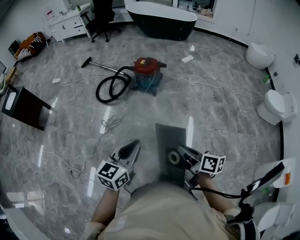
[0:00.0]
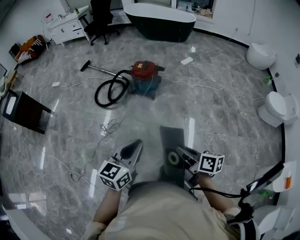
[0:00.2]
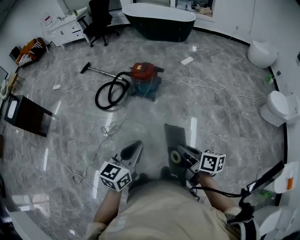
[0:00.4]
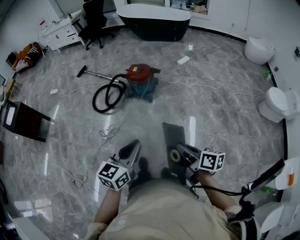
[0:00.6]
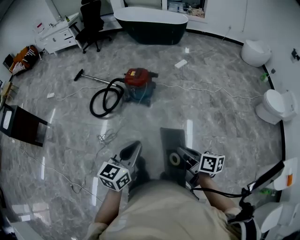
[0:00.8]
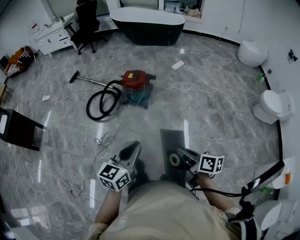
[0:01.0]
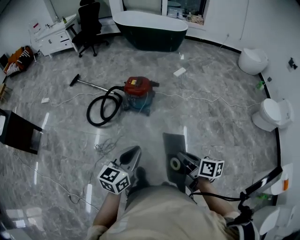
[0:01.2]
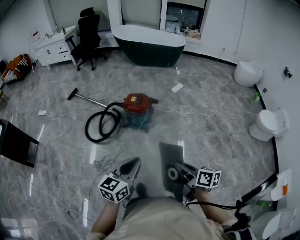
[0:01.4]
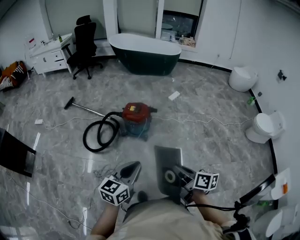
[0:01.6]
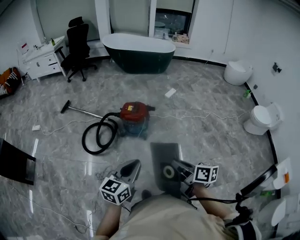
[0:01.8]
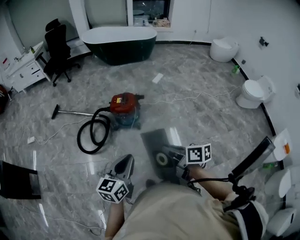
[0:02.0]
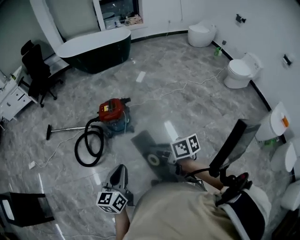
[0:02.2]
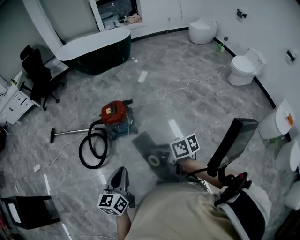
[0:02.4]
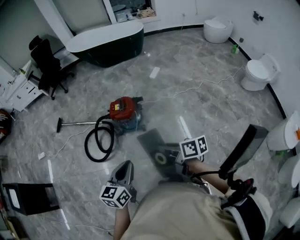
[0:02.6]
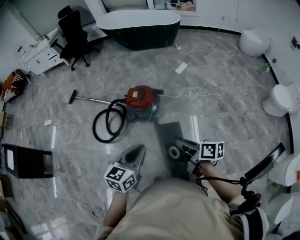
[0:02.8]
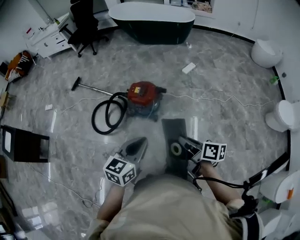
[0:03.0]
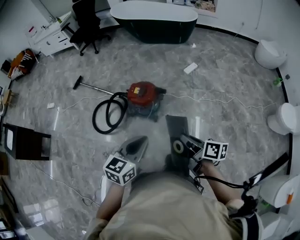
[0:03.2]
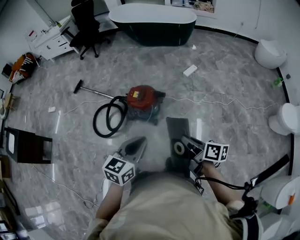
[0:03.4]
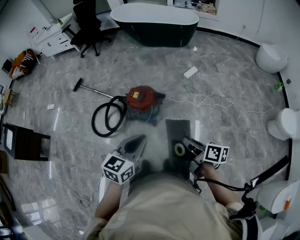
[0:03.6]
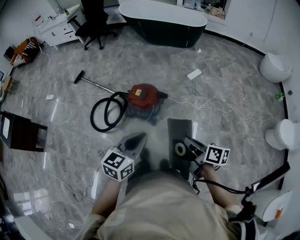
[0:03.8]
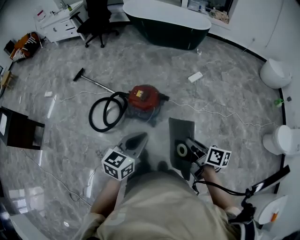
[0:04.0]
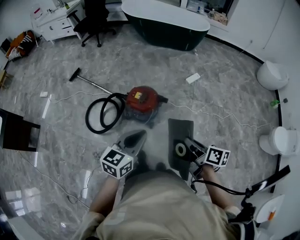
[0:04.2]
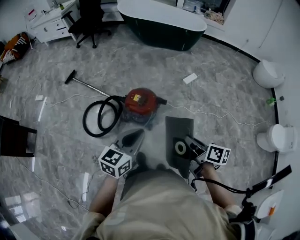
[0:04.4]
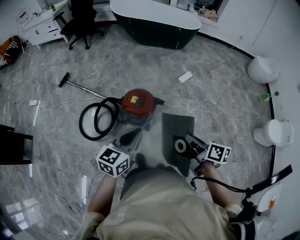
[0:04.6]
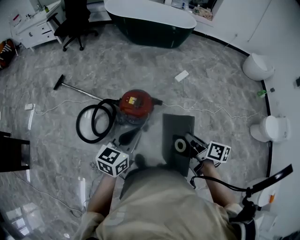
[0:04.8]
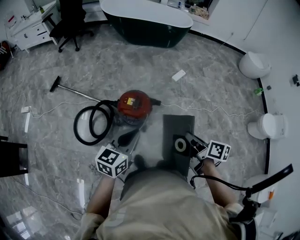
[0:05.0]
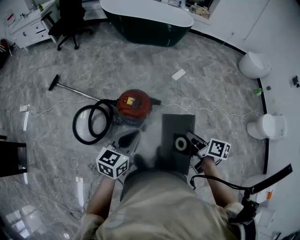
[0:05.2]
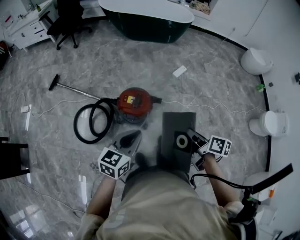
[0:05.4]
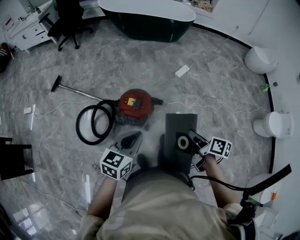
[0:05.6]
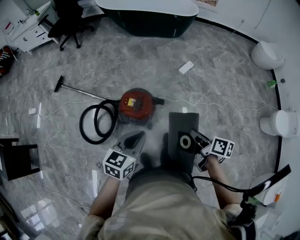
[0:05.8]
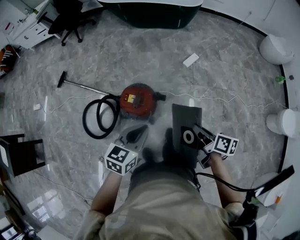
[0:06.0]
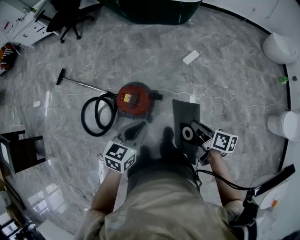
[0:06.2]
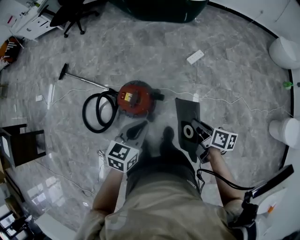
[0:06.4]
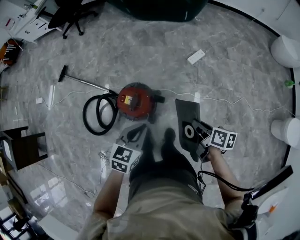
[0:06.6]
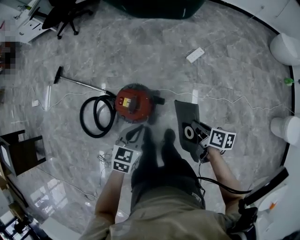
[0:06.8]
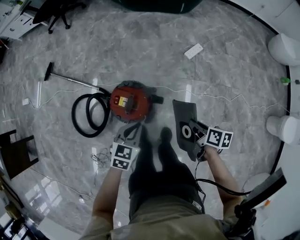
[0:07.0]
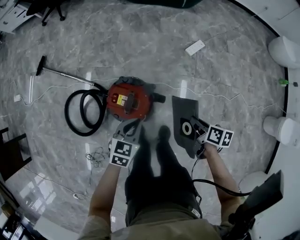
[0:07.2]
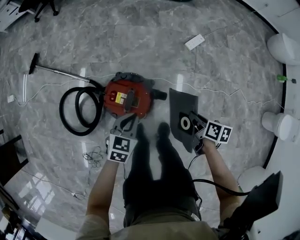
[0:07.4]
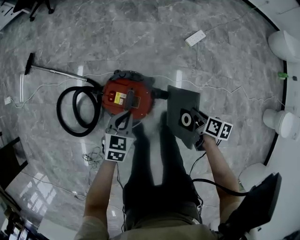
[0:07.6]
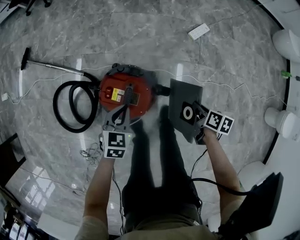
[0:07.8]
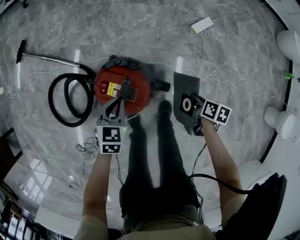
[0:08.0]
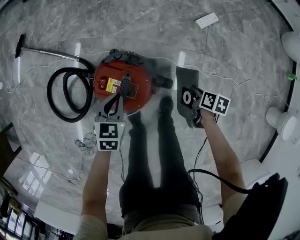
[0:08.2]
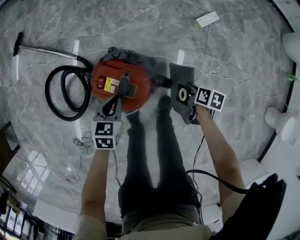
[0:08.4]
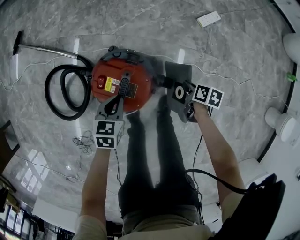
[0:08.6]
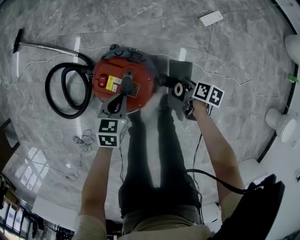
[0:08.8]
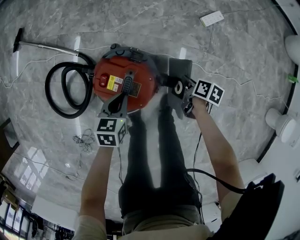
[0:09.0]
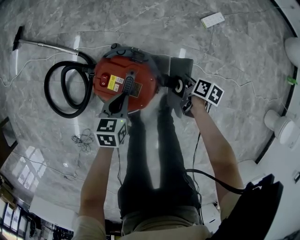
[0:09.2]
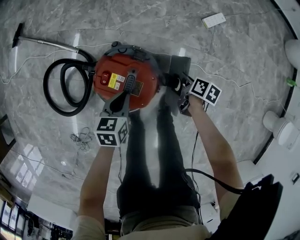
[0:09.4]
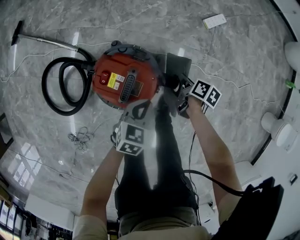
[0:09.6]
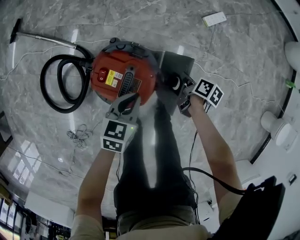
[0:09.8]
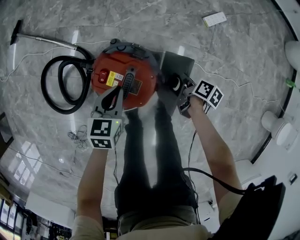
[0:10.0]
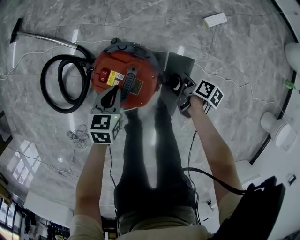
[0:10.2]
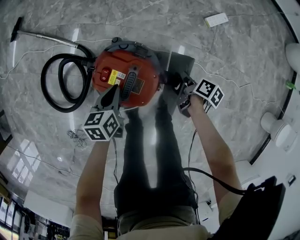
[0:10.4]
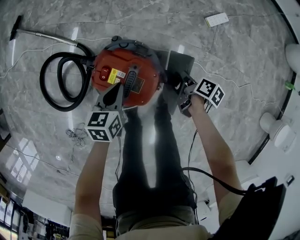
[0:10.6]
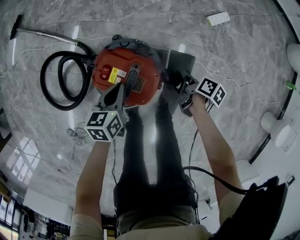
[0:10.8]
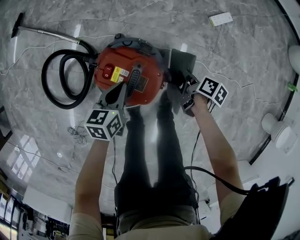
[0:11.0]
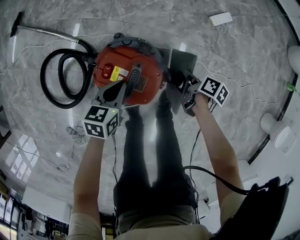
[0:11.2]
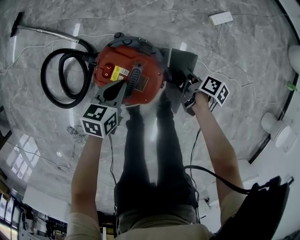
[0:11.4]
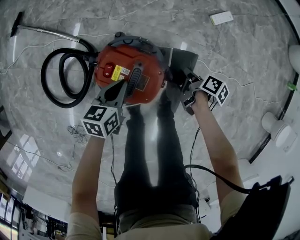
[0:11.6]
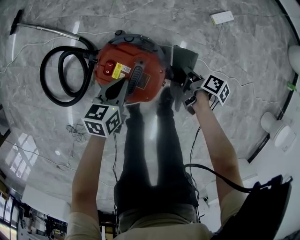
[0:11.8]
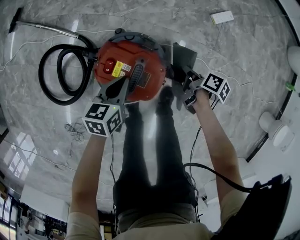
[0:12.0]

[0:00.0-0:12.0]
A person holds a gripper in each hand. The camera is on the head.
0.0 to 1.6 s: The left gripper changes place by about 30 cm.
1.6 to 3.0 s: The left gripper ends up approximately 20 cm from where it was.
3.0 to 4.4 s: The left gripper shifts by some 15 cm.
4.4 to 6.0 s: The left gripper moves some 20 cm.
6.0 to 7.6 s: The left gripper heads downward, covering about 30 cm.
7.6 to 9.0 s: The left gripper heads downward, covering approximately 10 cm, and rotates approximately 20 degrees.

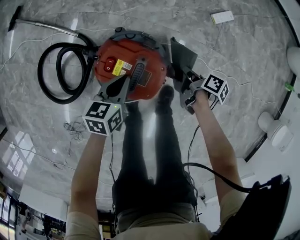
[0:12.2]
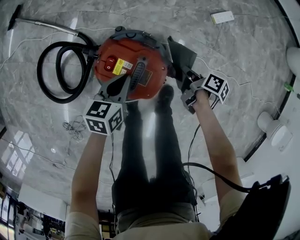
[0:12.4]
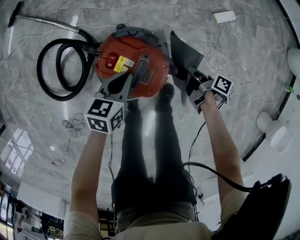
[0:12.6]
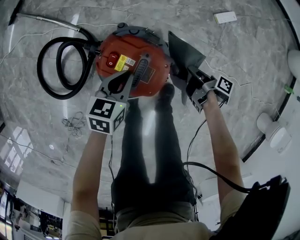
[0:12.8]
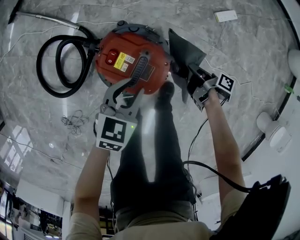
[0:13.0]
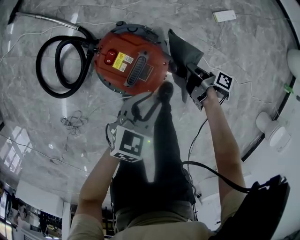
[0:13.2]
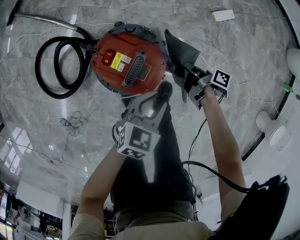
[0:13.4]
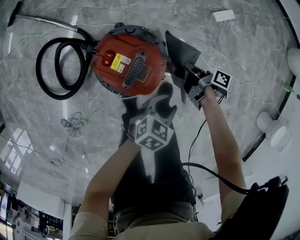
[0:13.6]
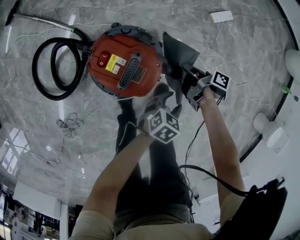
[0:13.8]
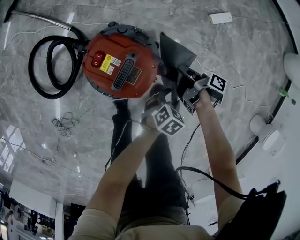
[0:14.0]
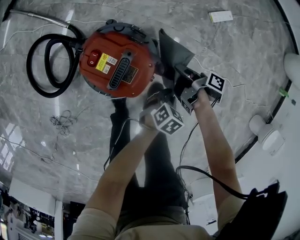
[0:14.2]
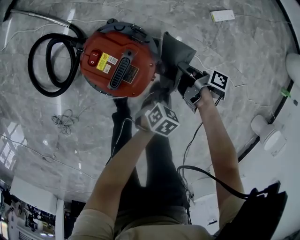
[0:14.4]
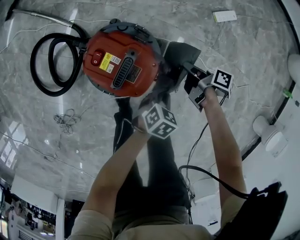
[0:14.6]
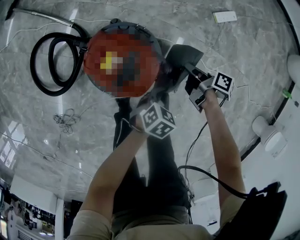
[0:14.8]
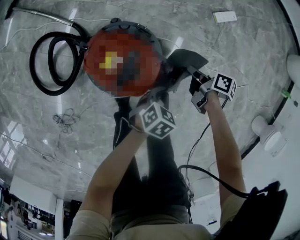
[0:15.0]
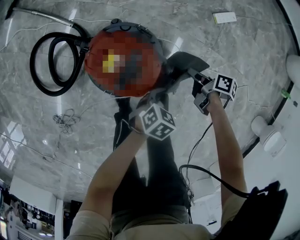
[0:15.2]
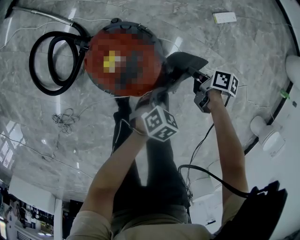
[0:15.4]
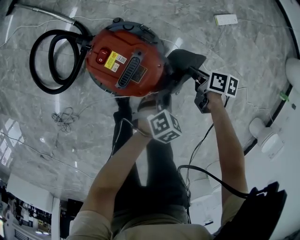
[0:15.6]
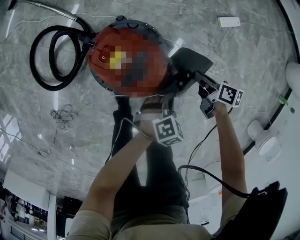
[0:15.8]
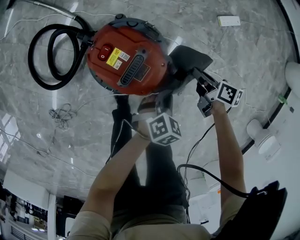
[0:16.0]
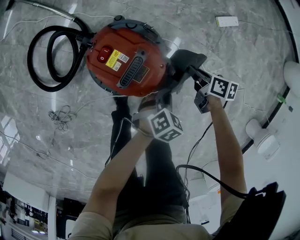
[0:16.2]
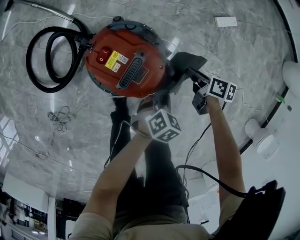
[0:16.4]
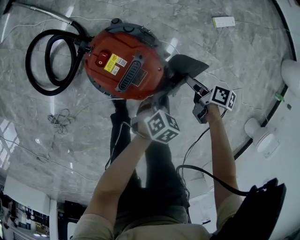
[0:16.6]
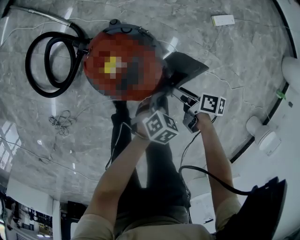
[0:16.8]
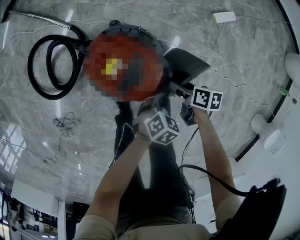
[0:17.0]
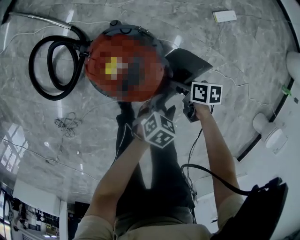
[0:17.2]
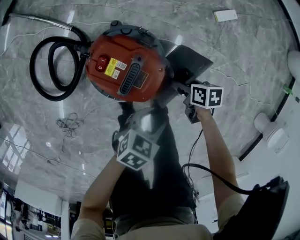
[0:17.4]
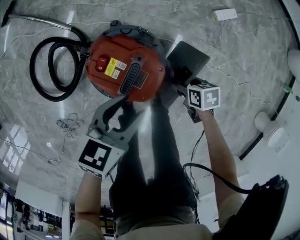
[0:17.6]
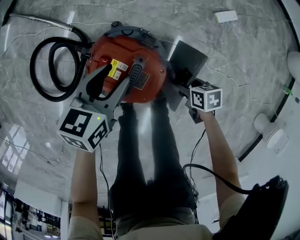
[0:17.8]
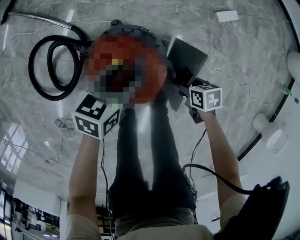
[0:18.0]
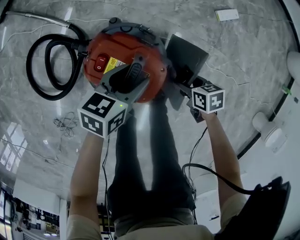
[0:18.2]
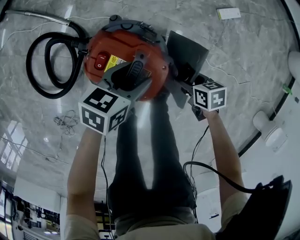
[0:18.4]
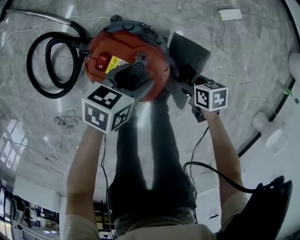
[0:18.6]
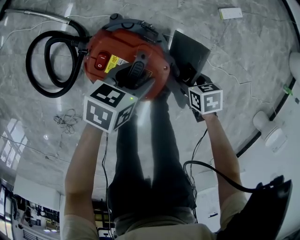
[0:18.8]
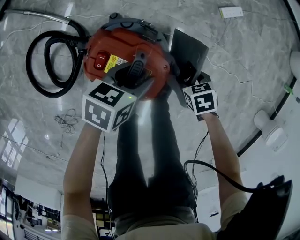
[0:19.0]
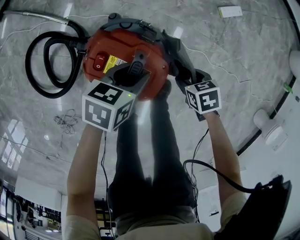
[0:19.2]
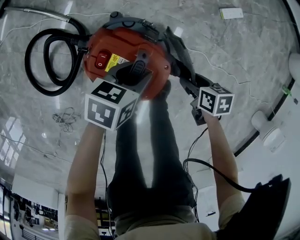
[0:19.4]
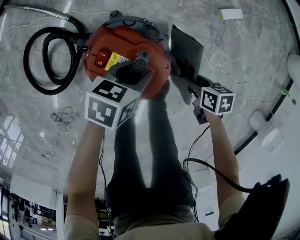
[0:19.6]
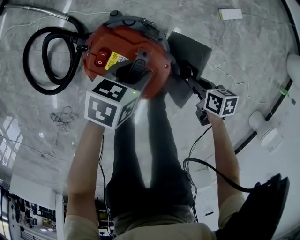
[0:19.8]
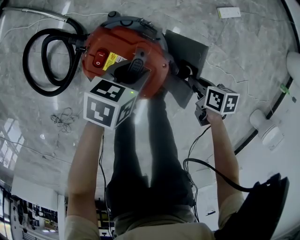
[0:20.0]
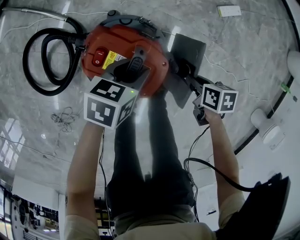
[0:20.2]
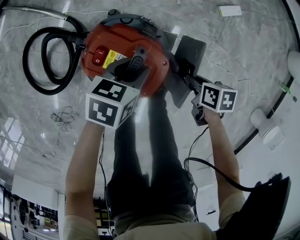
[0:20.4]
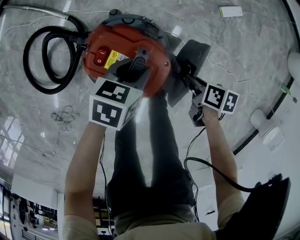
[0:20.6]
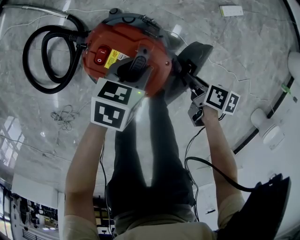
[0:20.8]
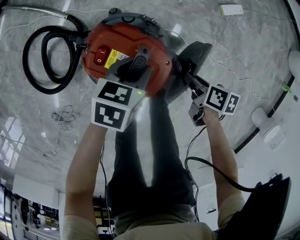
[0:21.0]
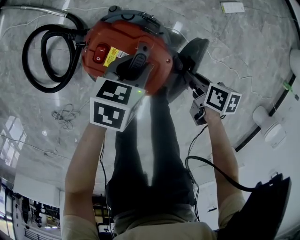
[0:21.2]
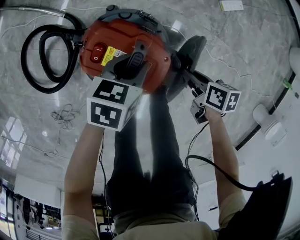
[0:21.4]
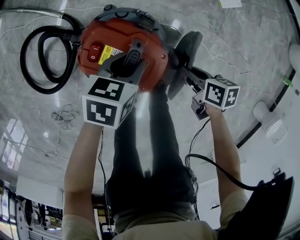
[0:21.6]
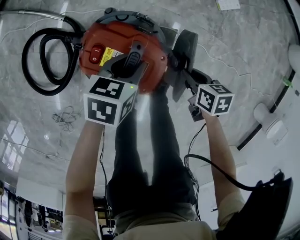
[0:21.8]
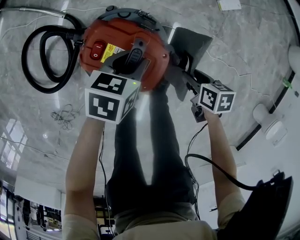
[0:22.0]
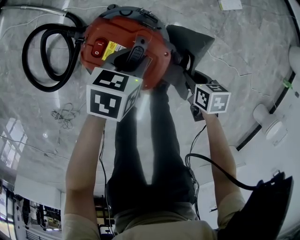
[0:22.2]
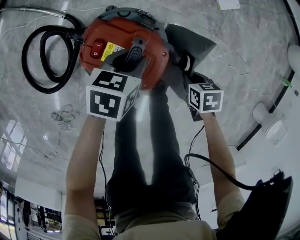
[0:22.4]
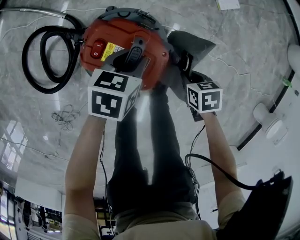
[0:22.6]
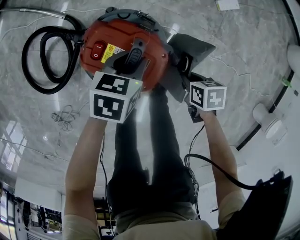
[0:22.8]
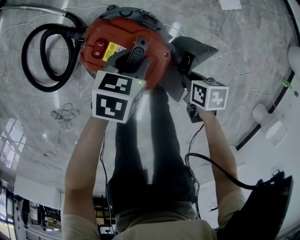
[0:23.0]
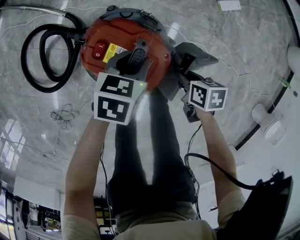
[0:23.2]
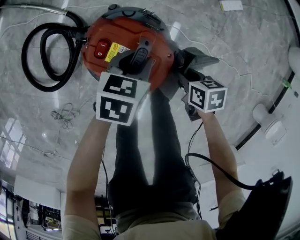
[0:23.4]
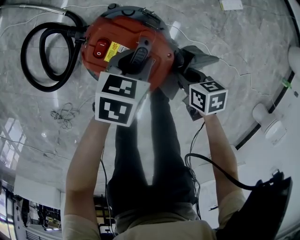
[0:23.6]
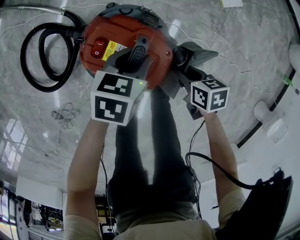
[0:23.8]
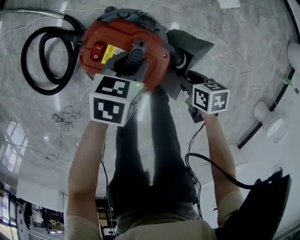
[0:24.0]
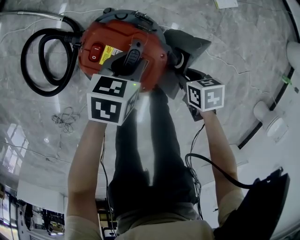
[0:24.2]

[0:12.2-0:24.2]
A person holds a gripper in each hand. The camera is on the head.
12.2 to 13.8 s: The left gripper ends up approximately 25 cm from where it was, changes its angle by approximately 30 degrees, and opens.
13.8 to 15.2 s: The left gripper moves approximately 5 cm, and closes up.
16.6 to 18.2 s: The left gripper ends up roughly 15 cm from where it was, swivels roughly 30 degrees, and opens its fingers.

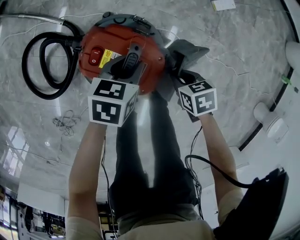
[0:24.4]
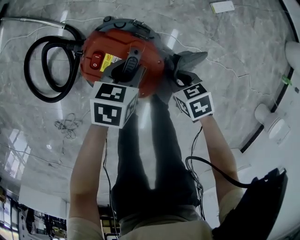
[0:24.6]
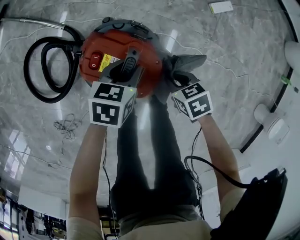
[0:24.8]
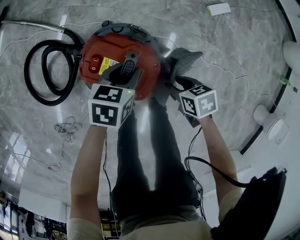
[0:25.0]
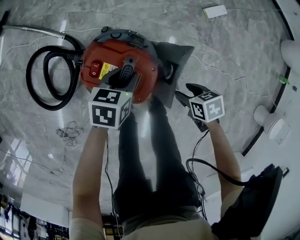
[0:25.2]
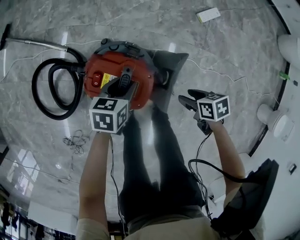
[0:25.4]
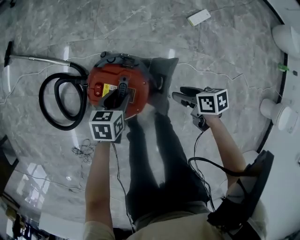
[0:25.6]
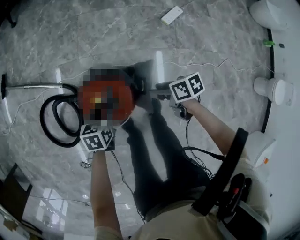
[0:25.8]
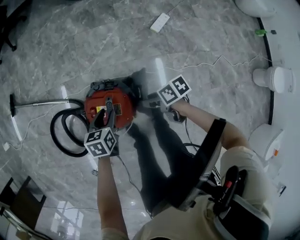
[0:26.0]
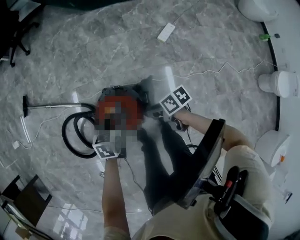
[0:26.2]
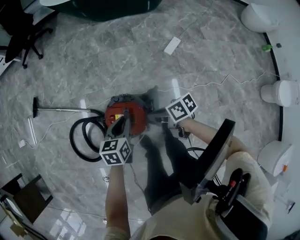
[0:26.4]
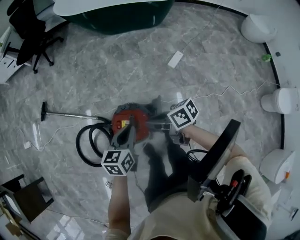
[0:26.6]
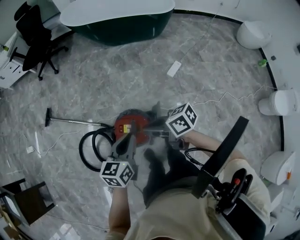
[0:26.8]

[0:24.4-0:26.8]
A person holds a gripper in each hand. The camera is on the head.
25.6 to 26.8 s: The left gripper travels upward by approximately 40 cm, swivels about 30 degrees, and closes.
